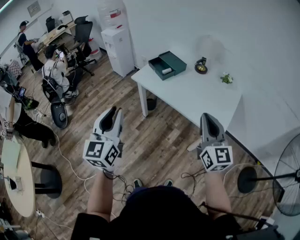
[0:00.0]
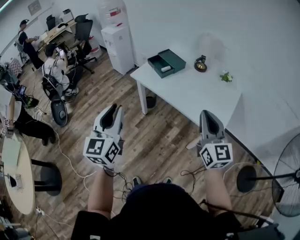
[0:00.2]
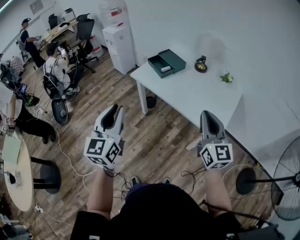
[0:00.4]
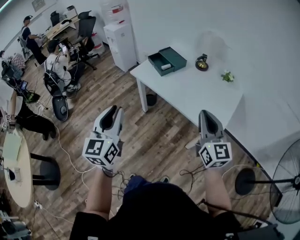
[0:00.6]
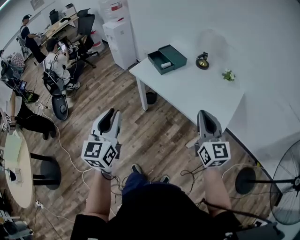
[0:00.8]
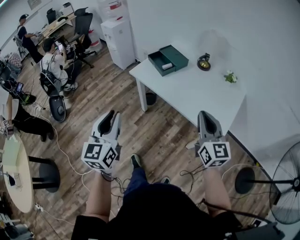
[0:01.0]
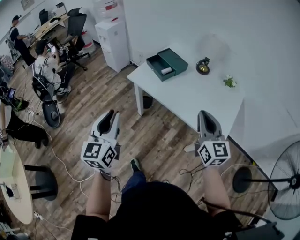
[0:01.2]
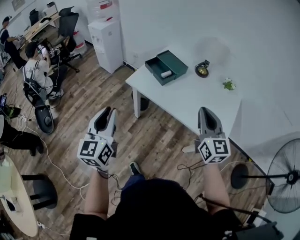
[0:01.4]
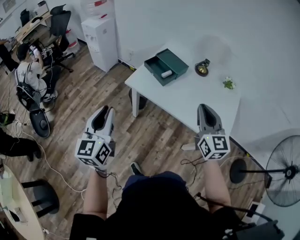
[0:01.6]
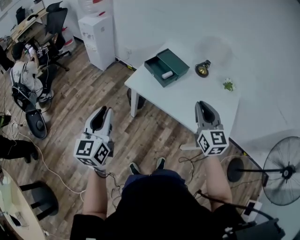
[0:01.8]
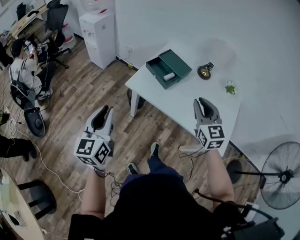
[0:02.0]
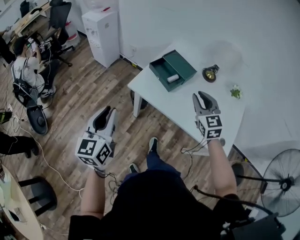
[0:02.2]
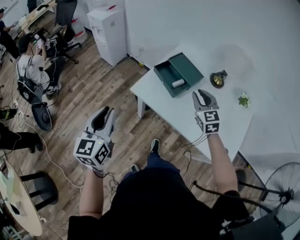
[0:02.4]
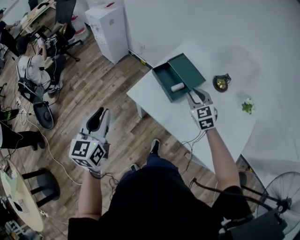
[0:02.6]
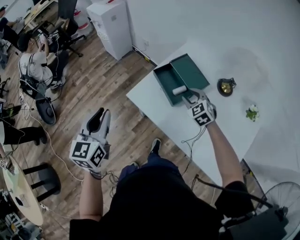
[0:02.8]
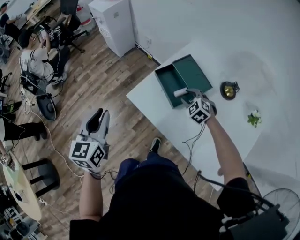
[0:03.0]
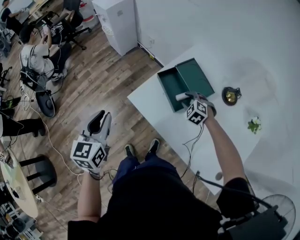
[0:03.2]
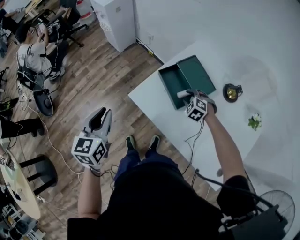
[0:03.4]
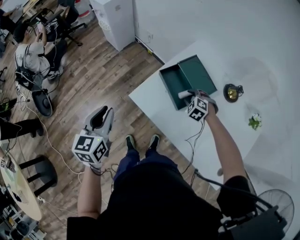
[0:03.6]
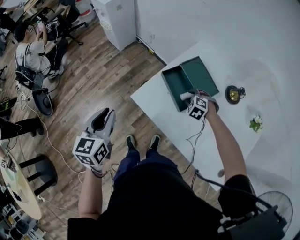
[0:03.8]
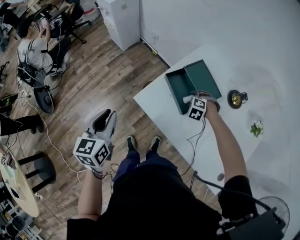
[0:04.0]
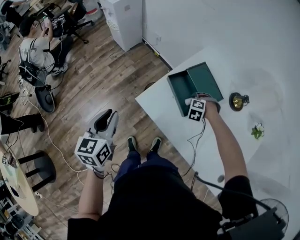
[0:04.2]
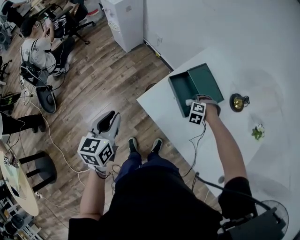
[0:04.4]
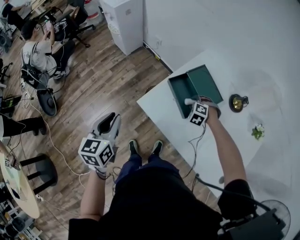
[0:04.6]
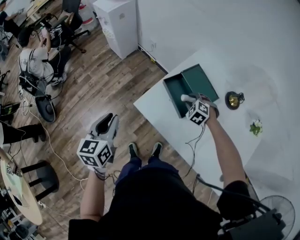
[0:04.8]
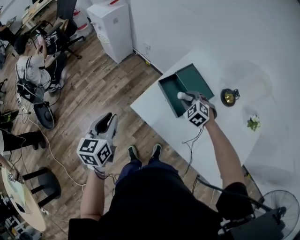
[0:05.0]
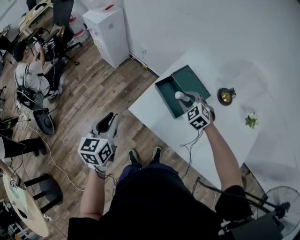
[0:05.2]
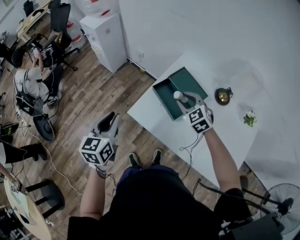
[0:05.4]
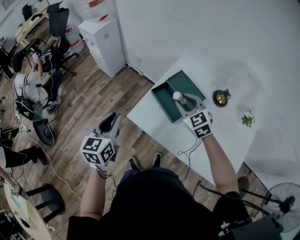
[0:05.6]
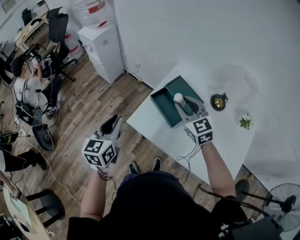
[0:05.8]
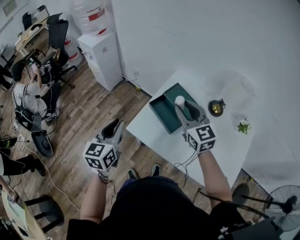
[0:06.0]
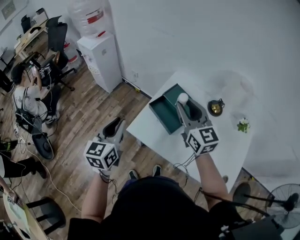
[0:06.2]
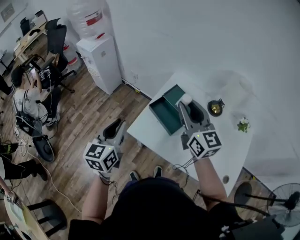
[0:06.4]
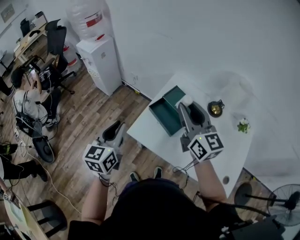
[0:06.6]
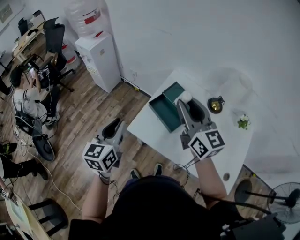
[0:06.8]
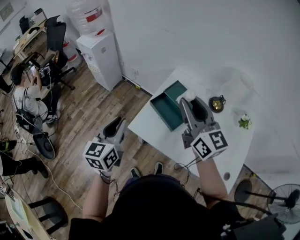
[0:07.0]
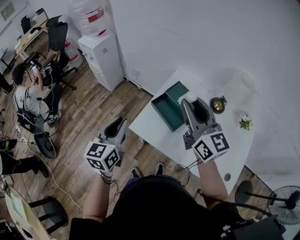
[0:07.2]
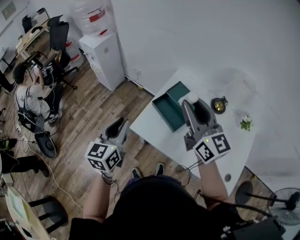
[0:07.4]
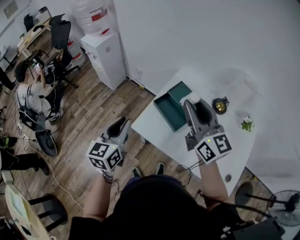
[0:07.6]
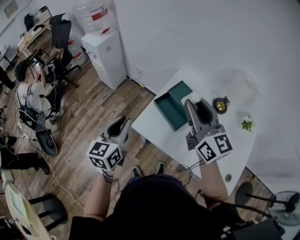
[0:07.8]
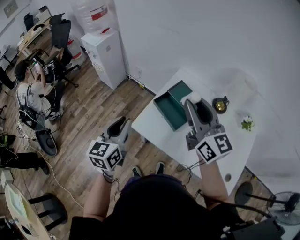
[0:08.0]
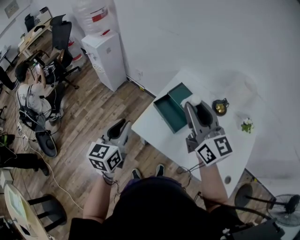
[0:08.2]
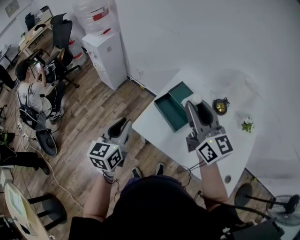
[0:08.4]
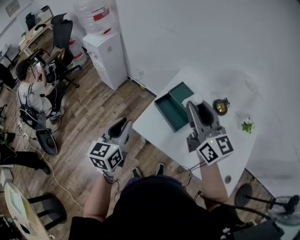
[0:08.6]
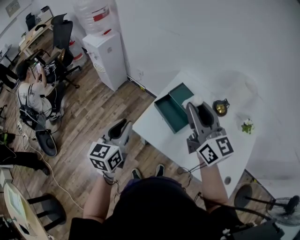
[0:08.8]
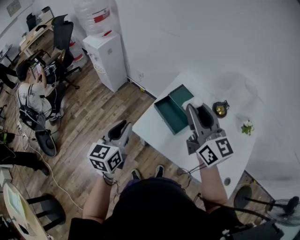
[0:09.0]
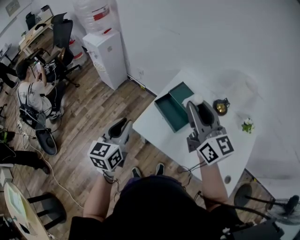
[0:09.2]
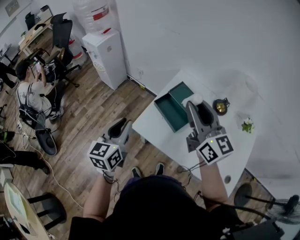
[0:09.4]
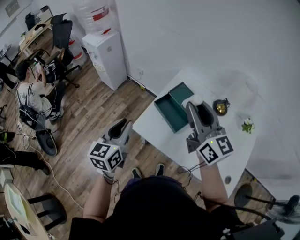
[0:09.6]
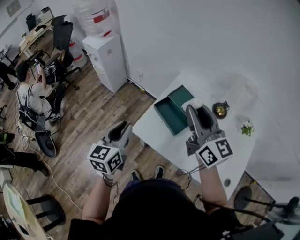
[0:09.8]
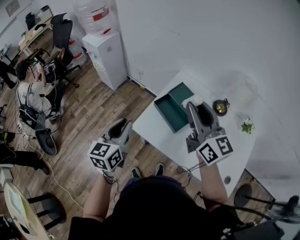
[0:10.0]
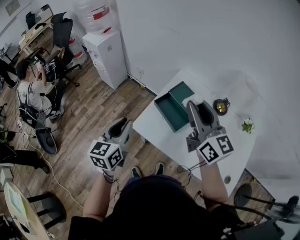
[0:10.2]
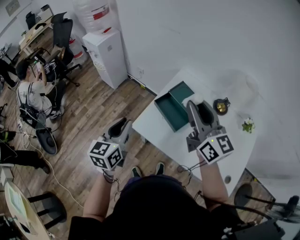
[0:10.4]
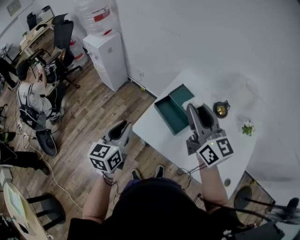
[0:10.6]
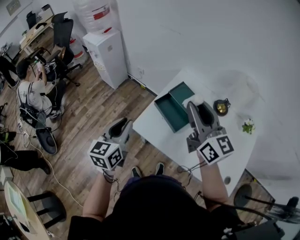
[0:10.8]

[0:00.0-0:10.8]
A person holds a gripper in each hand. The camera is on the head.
0:00.0 to 0:01.6: The two grippers go roughly 30 cm forward and to the left.
0:01.6 to 0:03.0: The left gripper is displaced forward by about 30 cm, and swivels about 20 degrees. Meanwhile the right gripper travels forward and downward by about 50 cm, tilts its fingers some 50 degrees downward, and opens.
0:03.0 to 0:04.6: The left gripper changes place by roughly 10 cm; the right gripper moves downward, roughly 5 cm, and turns by some 30 degrees.
0:04.6 to 0:06.2: The left gripper goes about 15 cm upward, to the right and forward; the right gripper is displaced upward by some 40 cm, and tilts its fingers approximately 60 degrees upward.
0:06.2 to 0:07.8: The right gripper travels upward by about 5 cm.
0:07.8 to 0:10.8: Both grippers stay put.

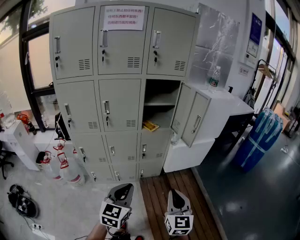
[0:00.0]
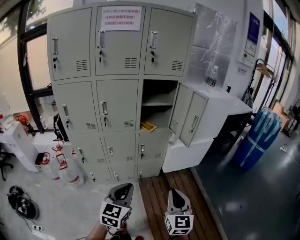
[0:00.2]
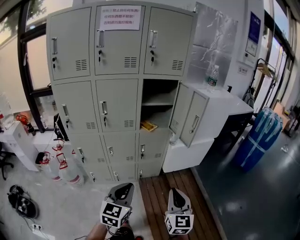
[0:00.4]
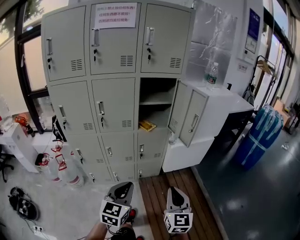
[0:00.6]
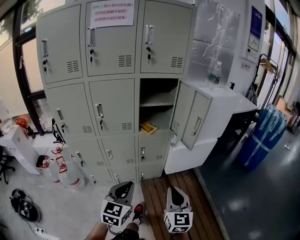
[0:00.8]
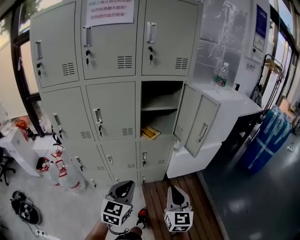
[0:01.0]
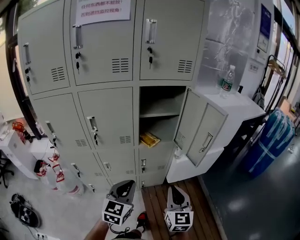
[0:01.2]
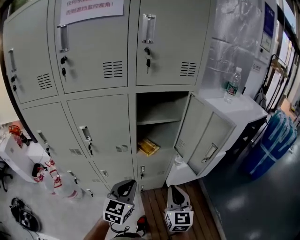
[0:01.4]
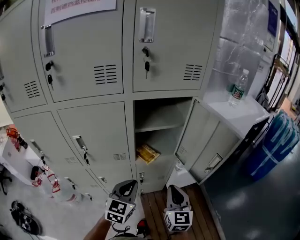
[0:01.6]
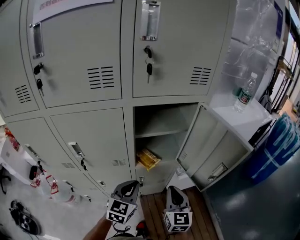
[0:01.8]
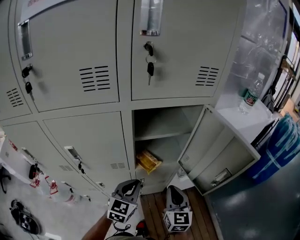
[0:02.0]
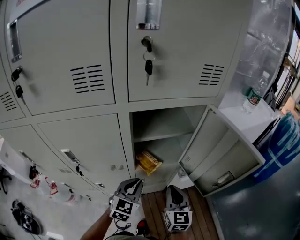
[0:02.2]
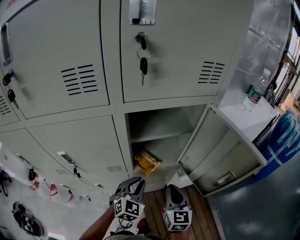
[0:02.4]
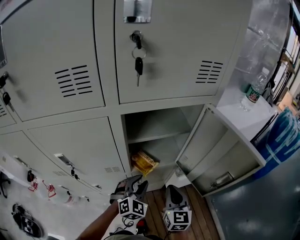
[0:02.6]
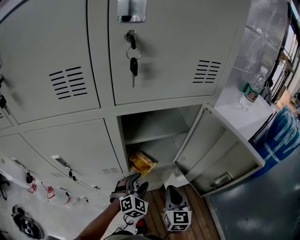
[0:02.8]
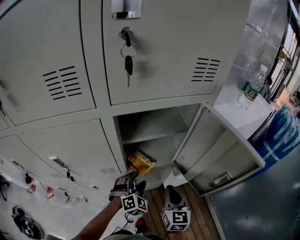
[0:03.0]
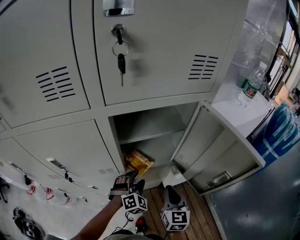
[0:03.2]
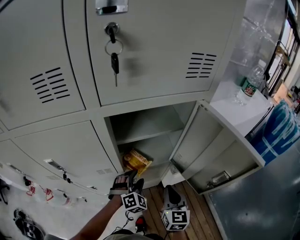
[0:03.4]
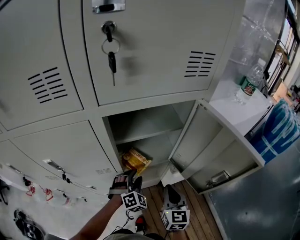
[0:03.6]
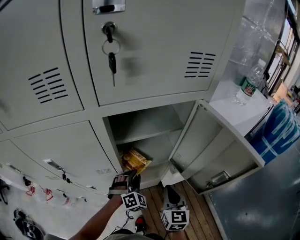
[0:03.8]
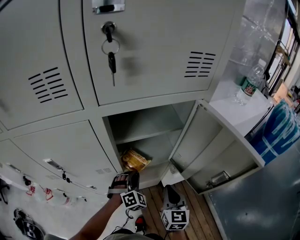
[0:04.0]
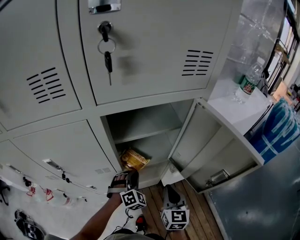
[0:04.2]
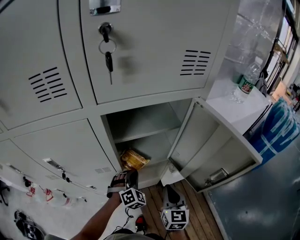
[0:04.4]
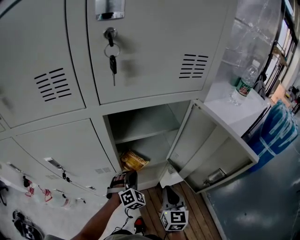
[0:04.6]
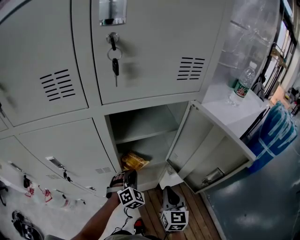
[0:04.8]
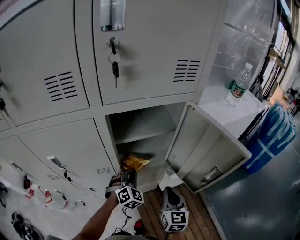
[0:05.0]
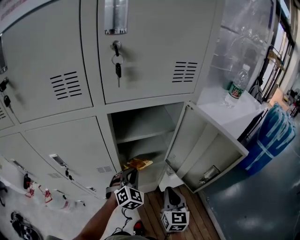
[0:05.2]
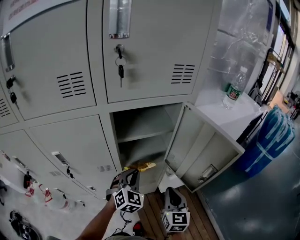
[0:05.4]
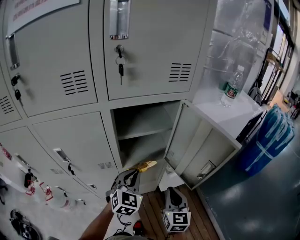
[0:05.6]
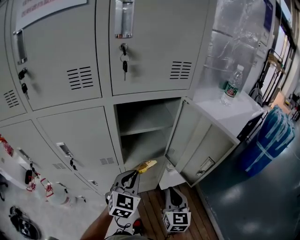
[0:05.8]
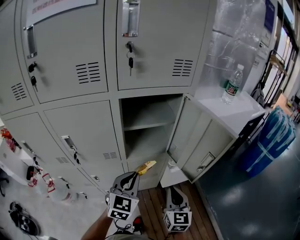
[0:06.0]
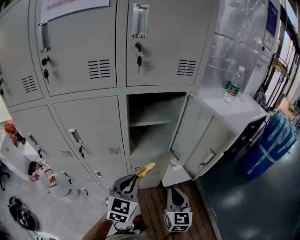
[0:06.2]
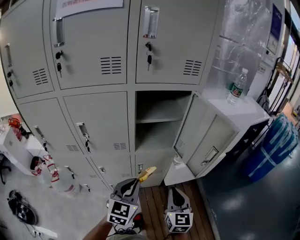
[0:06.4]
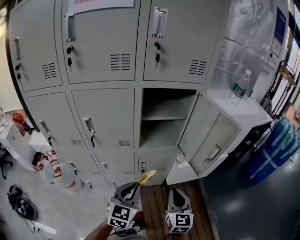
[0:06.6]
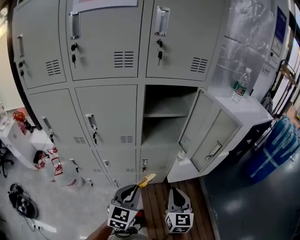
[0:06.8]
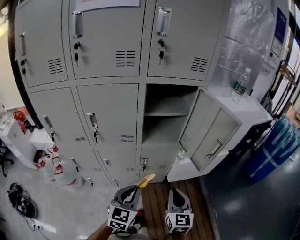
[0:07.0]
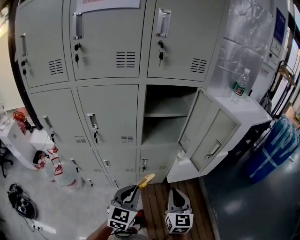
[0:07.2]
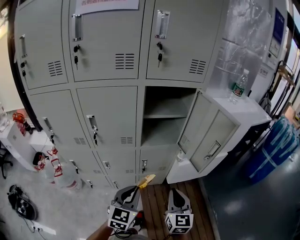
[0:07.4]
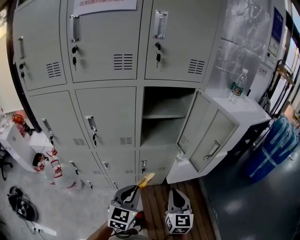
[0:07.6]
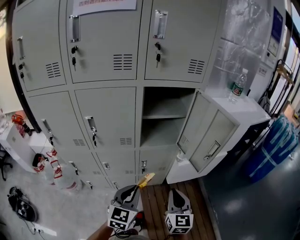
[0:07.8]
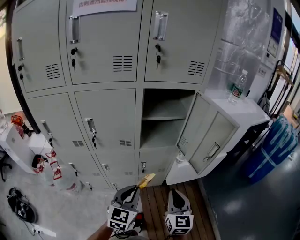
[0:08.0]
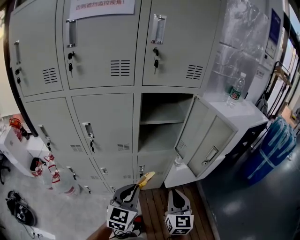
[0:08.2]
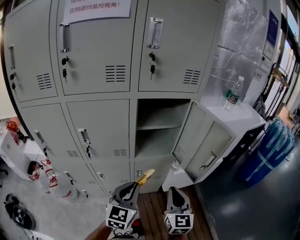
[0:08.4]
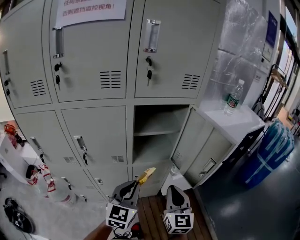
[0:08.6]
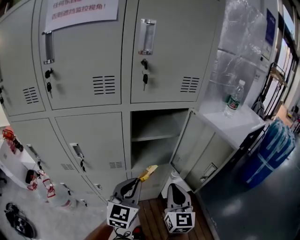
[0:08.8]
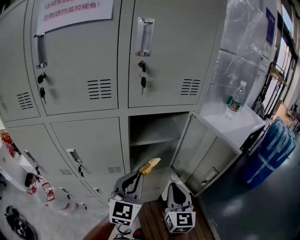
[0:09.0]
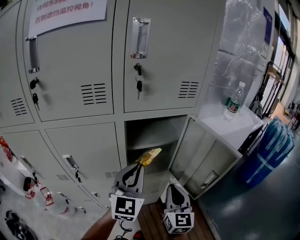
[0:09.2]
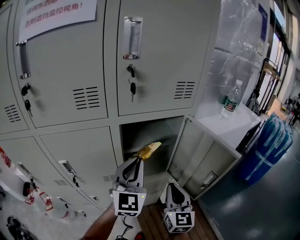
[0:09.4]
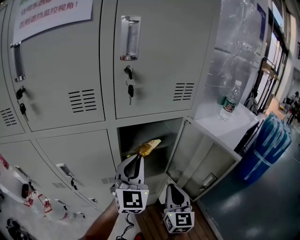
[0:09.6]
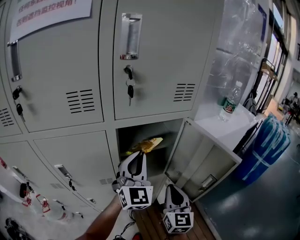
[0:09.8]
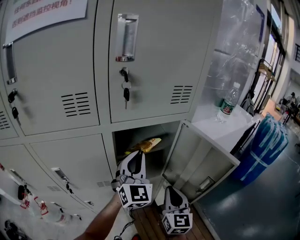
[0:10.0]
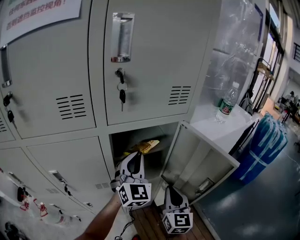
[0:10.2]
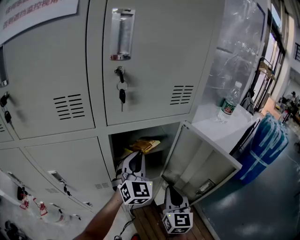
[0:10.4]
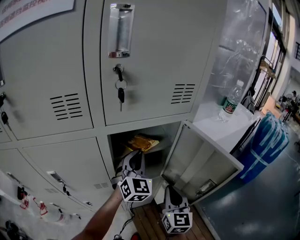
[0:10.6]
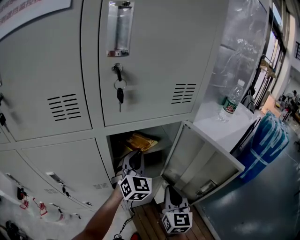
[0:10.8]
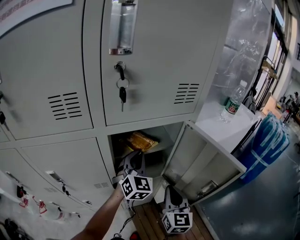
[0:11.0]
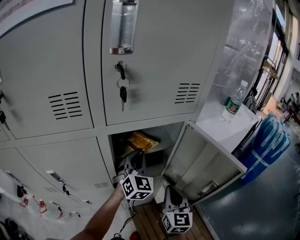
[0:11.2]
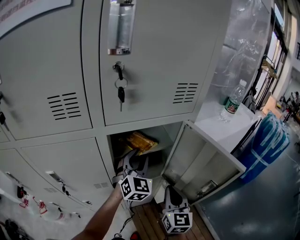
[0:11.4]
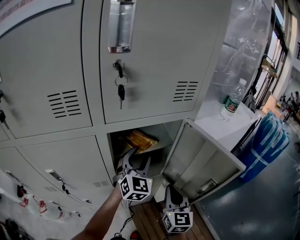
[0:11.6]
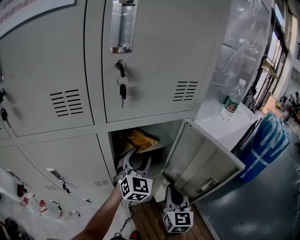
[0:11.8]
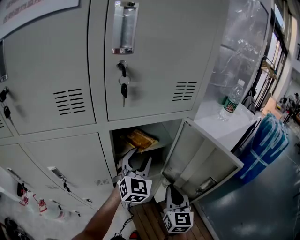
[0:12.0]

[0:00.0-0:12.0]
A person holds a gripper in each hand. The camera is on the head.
0:00.0 to 0:01.6: Both grippers move forward, approximately 35 cm.
0:01.6 to 0:03.0: The right gripper travels forward and downward by some 10 cm. The left gripper goes about 20 cm forward and downward, twists some 40 degrees clockwise, seen from behind, and opens.
0:03.0 to 0:04.4: The left gripper closes.
0:04.4 to 0:06.0: The right gripper is displaced backward and upward by approximately 10 cm. Meanwhile the left gripper goes approximately 20 cm upward and backward, and changes its angle by approximately 40 degrees.
0:06.0 to 0:07.6: The right gripper is displaced backward by some 10 cm; the left gripper is displaced backward by some 15 cm.
0:07.6 to 0:09.0: Both grippers move forward and upward, roughly 20 cm.
0:09.0 to 0:10.4: The right gripper is displaced forward by about 5 cm. Meanwhile the left gripper shifts roughly 15 cm forward, and rotates approximately 20 degrees.
0:10.4 to 0:12.0: The left gripper opens its fingers.

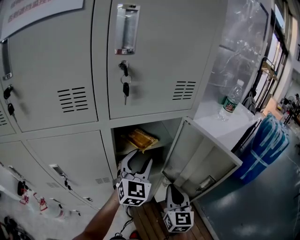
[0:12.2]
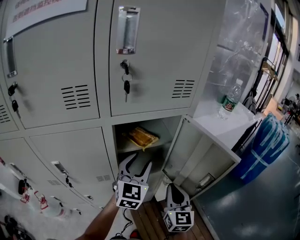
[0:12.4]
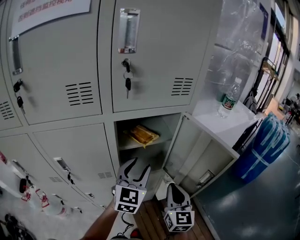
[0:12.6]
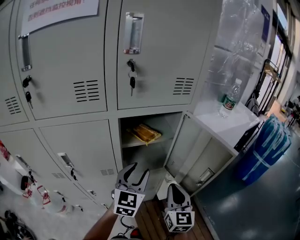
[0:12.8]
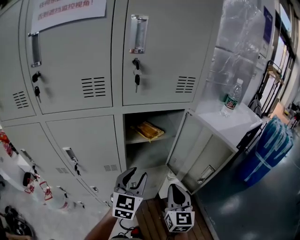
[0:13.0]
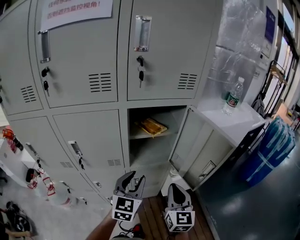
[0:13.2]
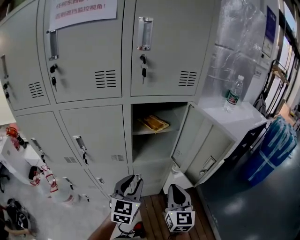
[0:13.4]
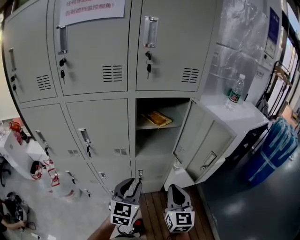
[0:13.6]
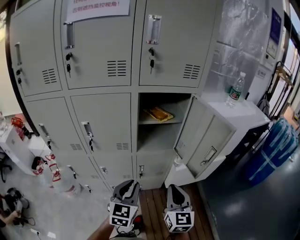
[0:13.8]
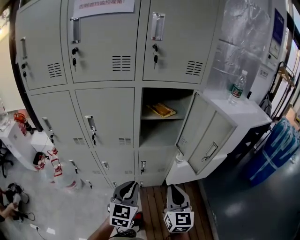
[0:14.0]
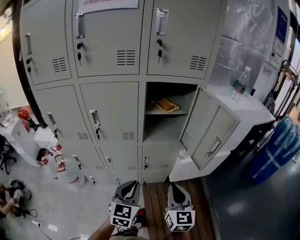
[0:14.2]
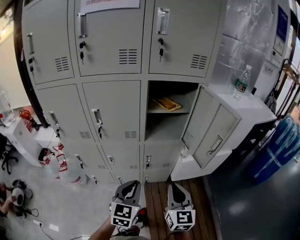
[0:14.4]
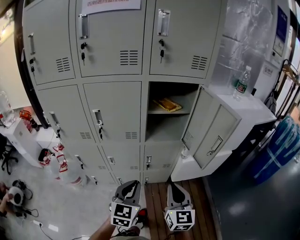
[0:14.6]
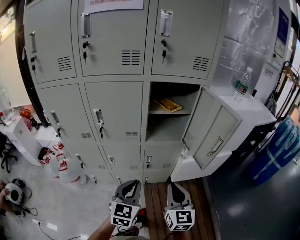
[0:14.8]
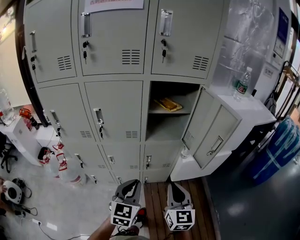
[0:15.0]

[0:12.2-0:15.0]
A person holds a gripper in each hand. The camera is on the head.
0:12.2 to 0:13.6: The left gripper is displaced backward by roughly 25 cm, changes its angle by about 20 degrees, and closes, while the right gripper heads backward, covering some 15 cm.
0:13.6 to 0:15.0: The grippers both shift backward by some 10 cm.
